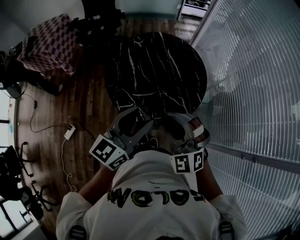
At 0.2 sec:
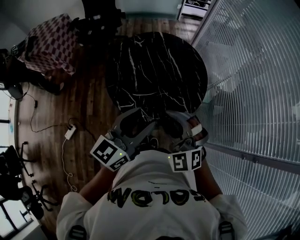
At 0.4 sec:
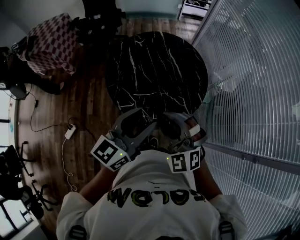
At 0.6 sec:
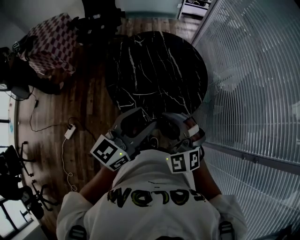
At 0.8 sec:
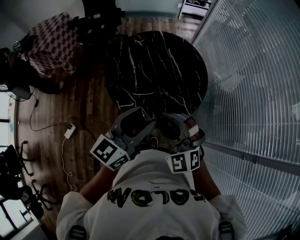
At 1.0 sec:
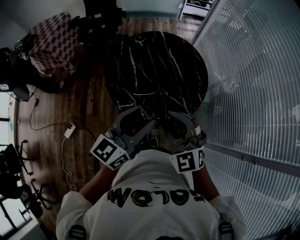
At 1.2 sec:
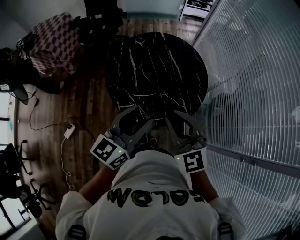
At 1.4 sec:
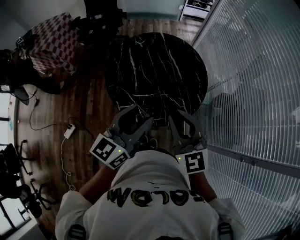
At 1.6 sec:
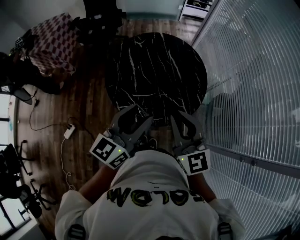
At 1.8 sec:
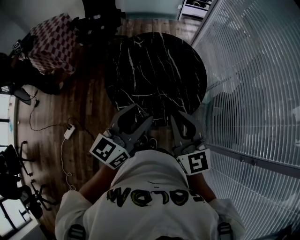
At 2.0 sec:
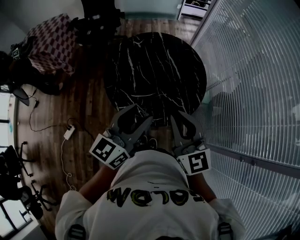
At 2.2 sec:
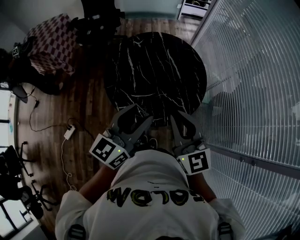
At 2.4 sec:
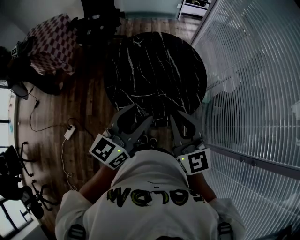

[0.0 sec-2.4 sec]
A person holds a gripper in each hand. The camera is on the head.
0.0 sec to 1.2 sec: The right gripper swivels roughly 30 degrees.
1.2 sec to 2.4 sec: The right gripper swivels about 20 degrees.

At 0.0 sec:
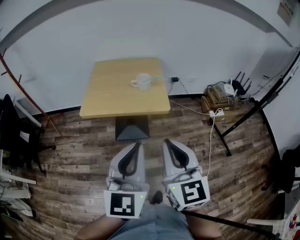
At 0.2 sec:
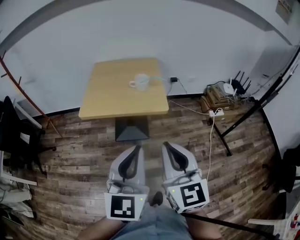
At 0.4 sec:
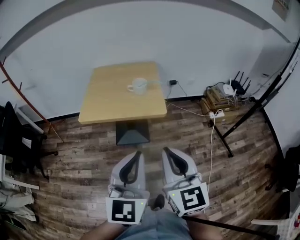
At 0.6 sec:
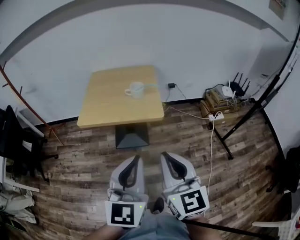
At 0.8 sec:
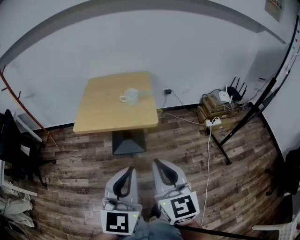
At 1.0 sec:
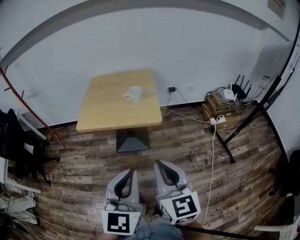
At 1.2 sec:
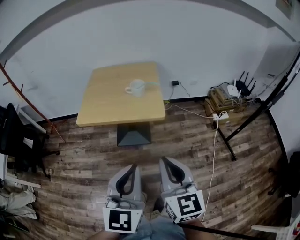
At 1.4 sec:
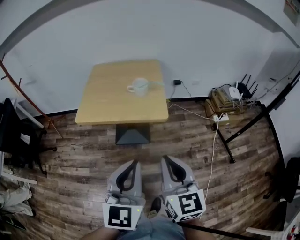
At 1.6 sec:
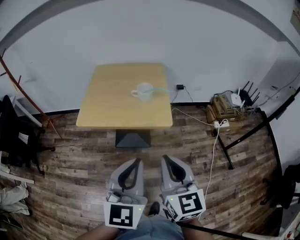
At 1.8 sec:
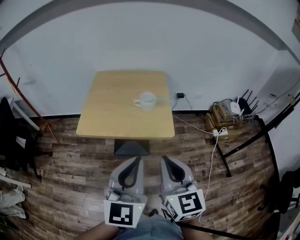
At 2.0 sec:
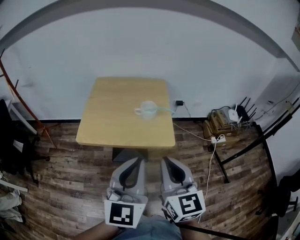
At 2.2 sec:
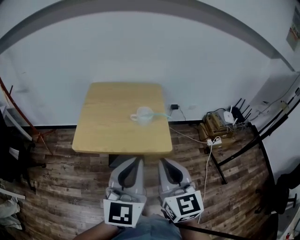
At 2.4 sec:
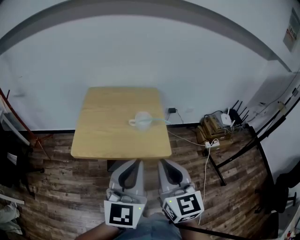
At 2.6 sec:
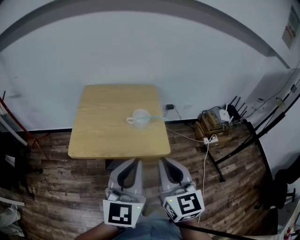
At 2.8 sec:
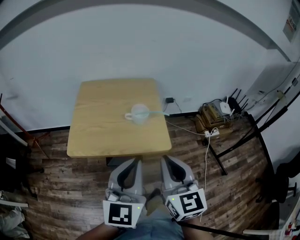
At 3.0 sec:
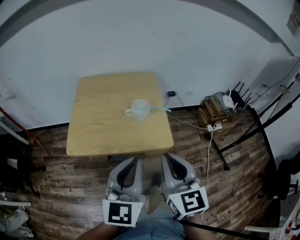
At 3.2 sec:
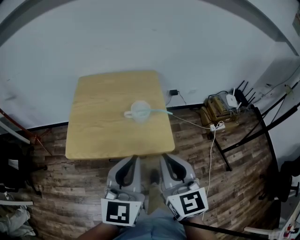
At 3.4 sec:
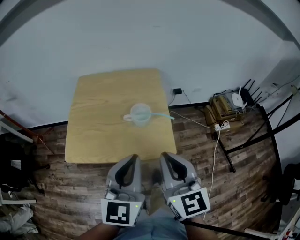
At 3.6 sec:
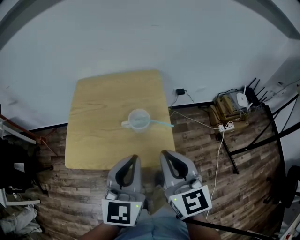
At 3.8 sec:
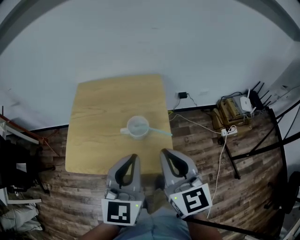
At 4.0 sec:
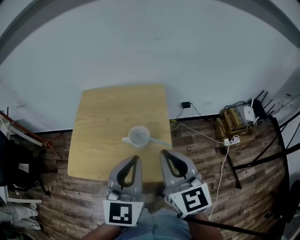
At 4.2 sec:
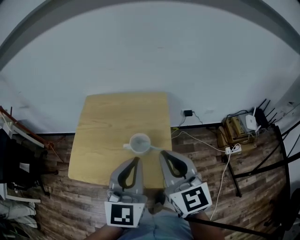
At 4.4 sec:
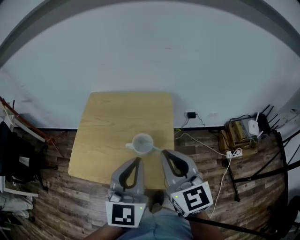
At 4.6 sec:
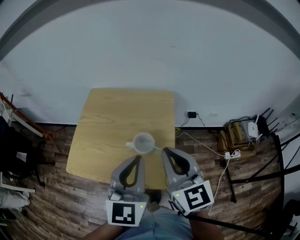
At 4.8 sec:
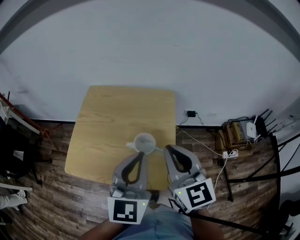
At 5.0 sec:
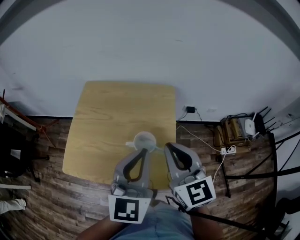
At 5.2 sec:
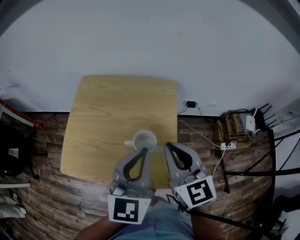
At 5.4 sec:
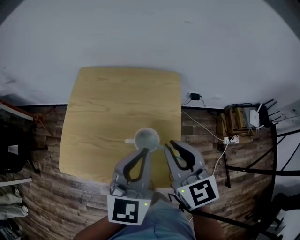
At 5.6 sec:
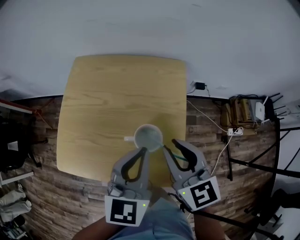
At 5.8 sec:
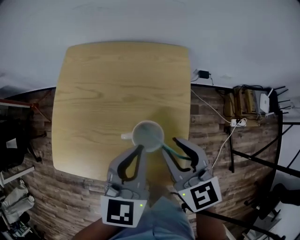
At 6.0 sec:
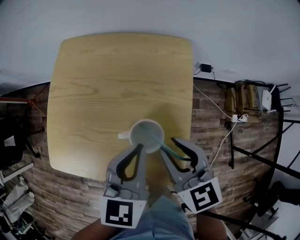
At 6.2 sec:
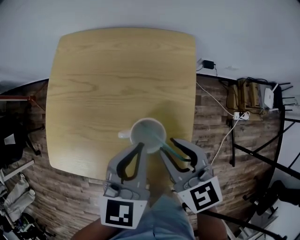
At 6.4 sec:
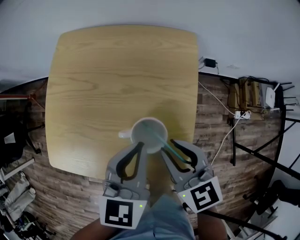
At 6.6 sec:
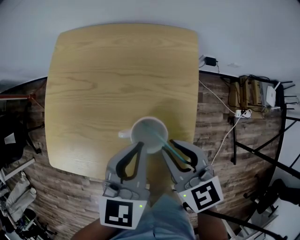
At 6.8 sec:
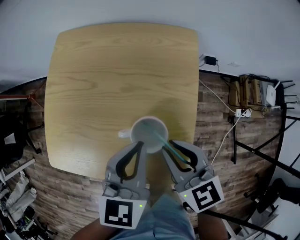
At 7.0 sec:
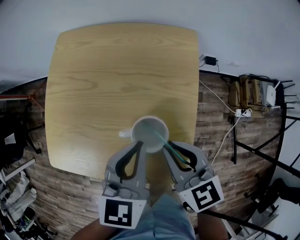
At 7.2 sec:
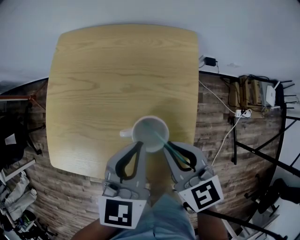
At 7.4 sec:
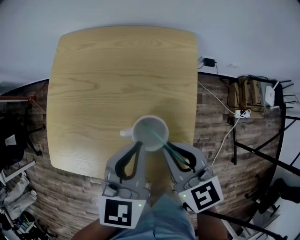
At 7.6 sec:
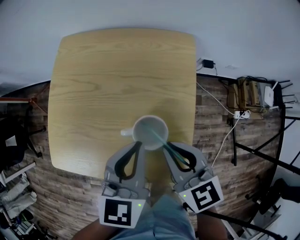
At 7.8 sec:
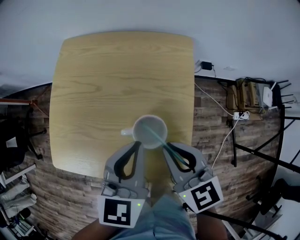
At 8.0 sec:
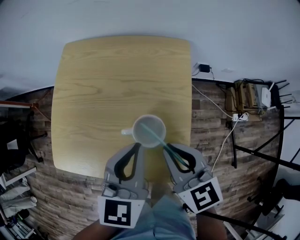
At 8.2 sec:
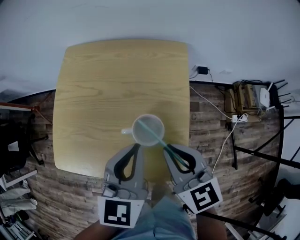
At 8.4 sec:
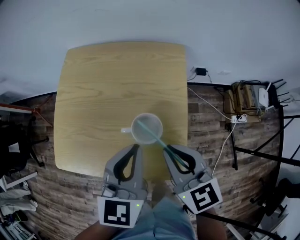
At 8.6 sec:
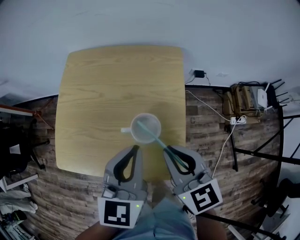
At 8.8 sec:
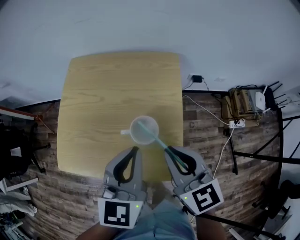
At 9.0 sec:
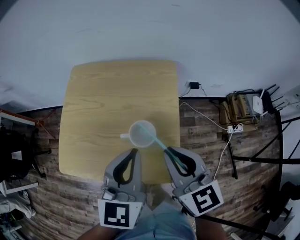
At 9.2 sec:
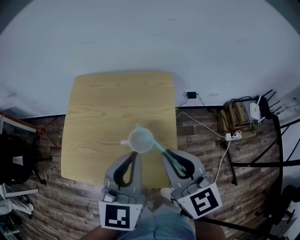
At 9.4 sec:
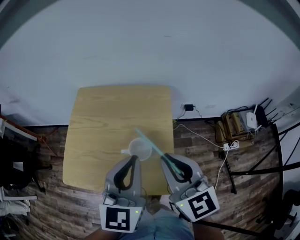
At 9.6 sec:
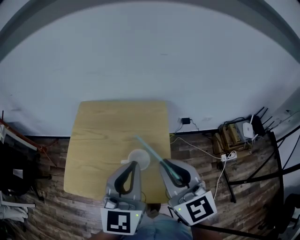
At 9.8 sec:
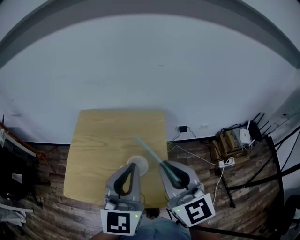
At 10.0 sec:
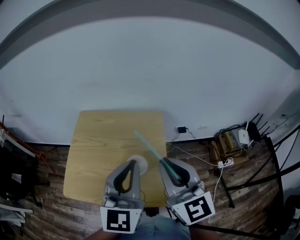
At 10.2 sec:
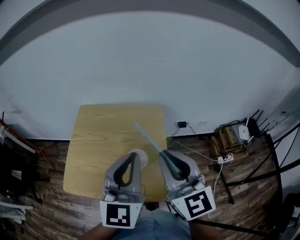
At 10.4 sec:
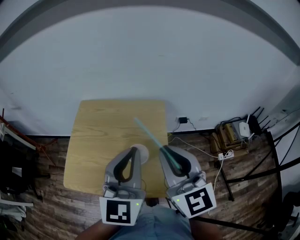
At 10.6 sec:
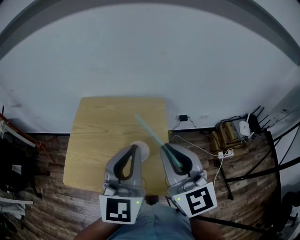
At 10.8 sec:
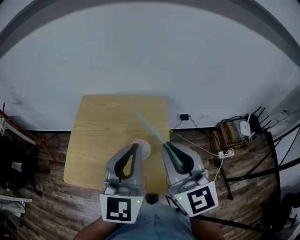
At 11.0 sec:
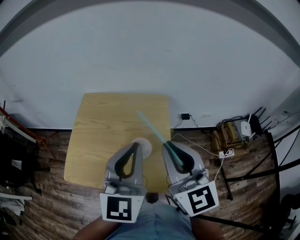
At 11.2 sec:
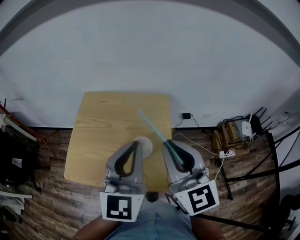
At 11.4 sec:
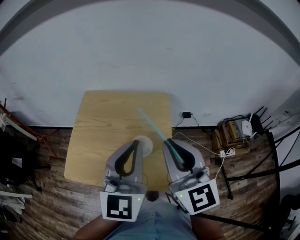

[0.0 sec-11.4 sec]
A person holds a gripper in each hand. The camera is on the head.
0.0 sec to 1.4 sec: The right gripper shifts approximately 10 cm downward and to the right; the left gripper changes place by about 5 cm.
1.4 sec to 2.8 sec: The two grippers go about 15 cm forward.
2.8 sec to 4.2 sec: The right gripper heads forward, covering about 20 cm. Meanwhile the left gripper travels forward and to the right by approximately 20 cm.
4.2 sec to 5.6 sec: The left gripper is displaced forward and downward by approximately 15 cm, while the right gripper heads downward and forward, covering about 15 cm, and opens up.
5.6 sec to 7.2 sec: Both grippers travel together downward, approximately 10 cm.
7.2 sec to 8.6 sec: Both grippers move upward, some 5 cm.
8.6 sec to 10.0 sec: Both grippers travel together upward, some 15 cm. The right gripper swivels some 30 degrees, while the left gripper changes its angle by about 20 degrees.
10.0 sec to 11.4 sec: There are only small adjustments of the grippers.

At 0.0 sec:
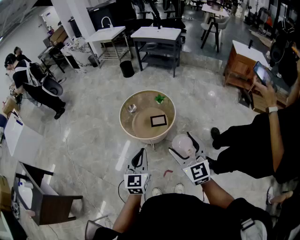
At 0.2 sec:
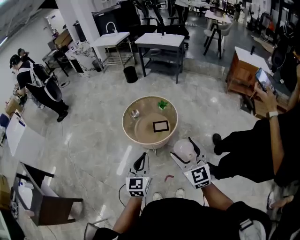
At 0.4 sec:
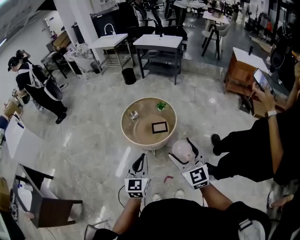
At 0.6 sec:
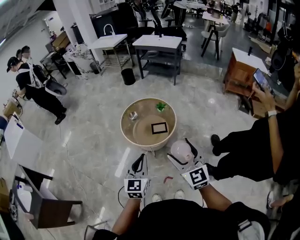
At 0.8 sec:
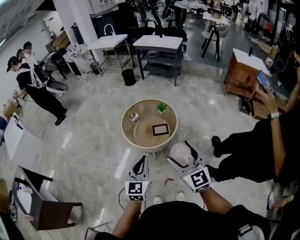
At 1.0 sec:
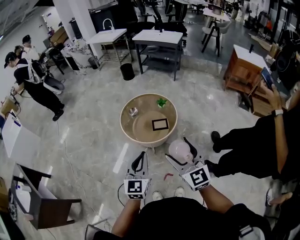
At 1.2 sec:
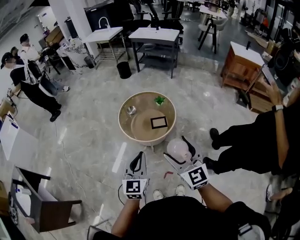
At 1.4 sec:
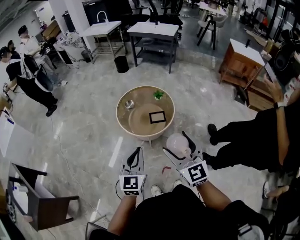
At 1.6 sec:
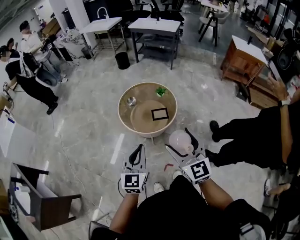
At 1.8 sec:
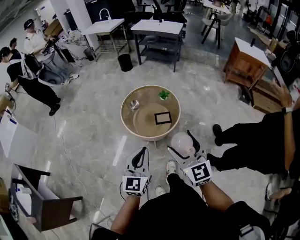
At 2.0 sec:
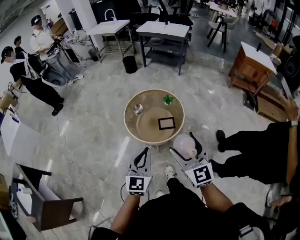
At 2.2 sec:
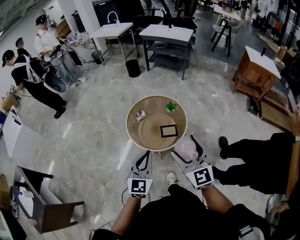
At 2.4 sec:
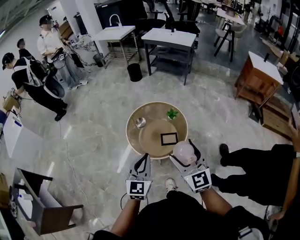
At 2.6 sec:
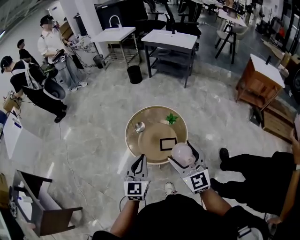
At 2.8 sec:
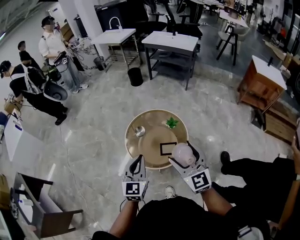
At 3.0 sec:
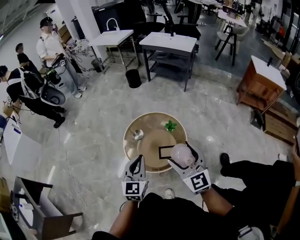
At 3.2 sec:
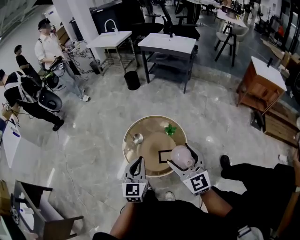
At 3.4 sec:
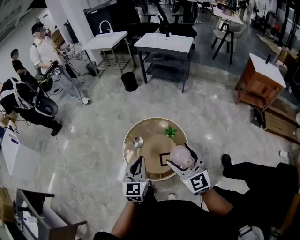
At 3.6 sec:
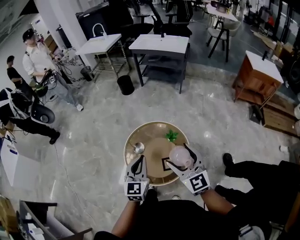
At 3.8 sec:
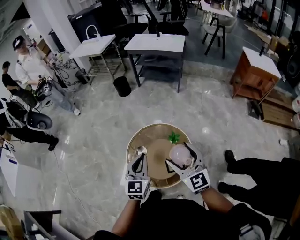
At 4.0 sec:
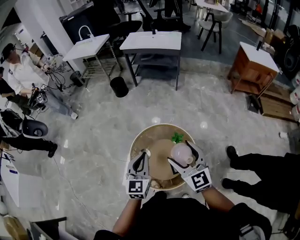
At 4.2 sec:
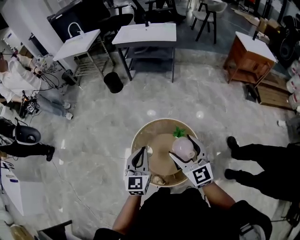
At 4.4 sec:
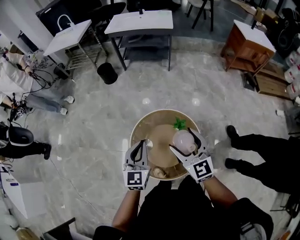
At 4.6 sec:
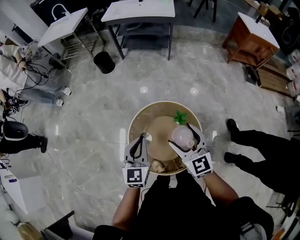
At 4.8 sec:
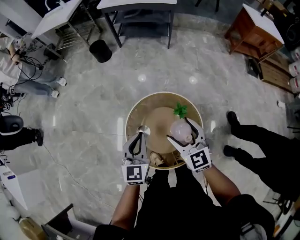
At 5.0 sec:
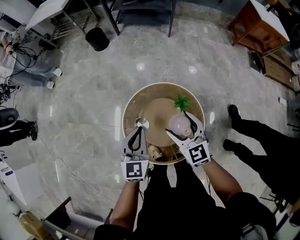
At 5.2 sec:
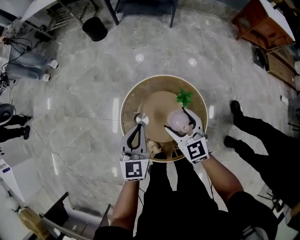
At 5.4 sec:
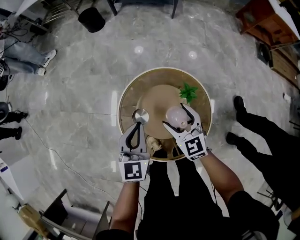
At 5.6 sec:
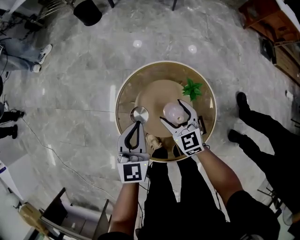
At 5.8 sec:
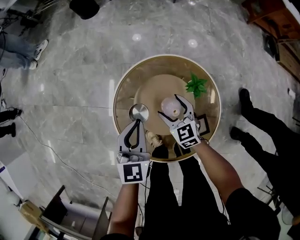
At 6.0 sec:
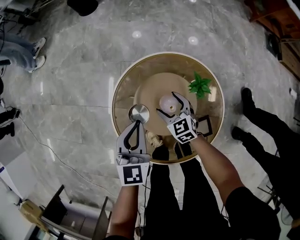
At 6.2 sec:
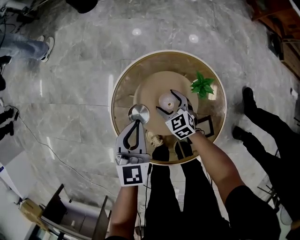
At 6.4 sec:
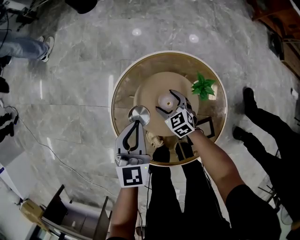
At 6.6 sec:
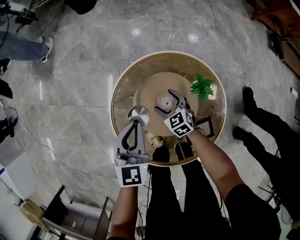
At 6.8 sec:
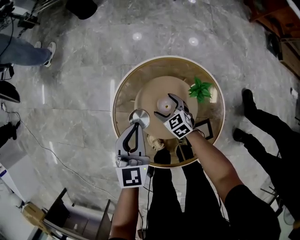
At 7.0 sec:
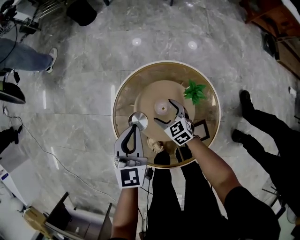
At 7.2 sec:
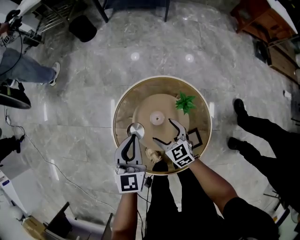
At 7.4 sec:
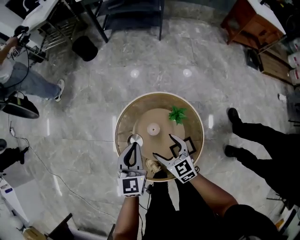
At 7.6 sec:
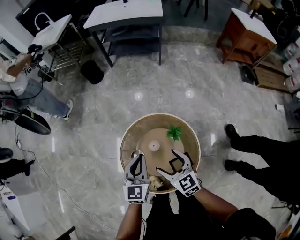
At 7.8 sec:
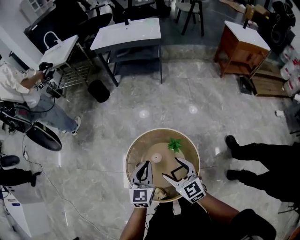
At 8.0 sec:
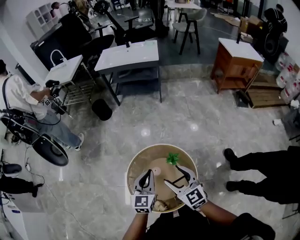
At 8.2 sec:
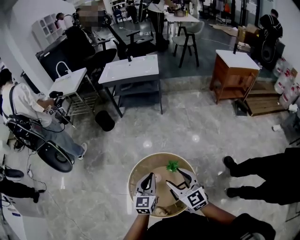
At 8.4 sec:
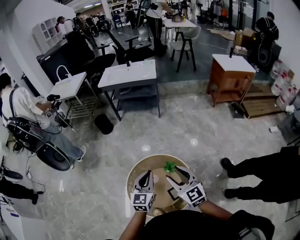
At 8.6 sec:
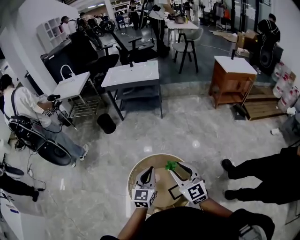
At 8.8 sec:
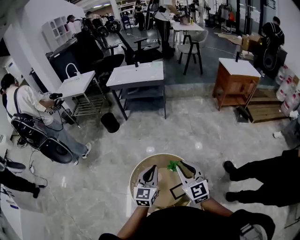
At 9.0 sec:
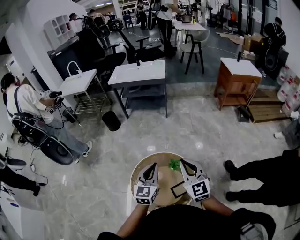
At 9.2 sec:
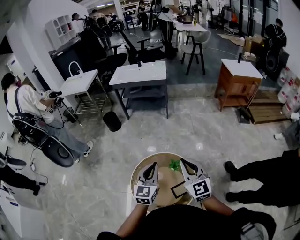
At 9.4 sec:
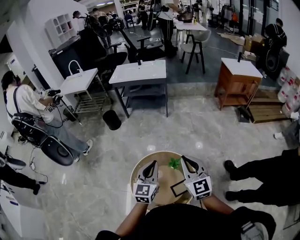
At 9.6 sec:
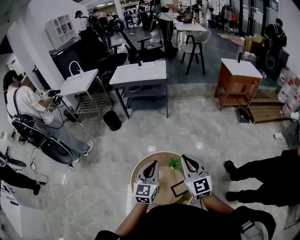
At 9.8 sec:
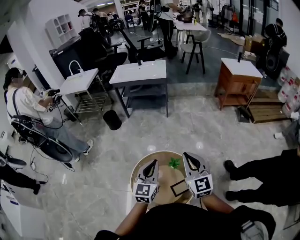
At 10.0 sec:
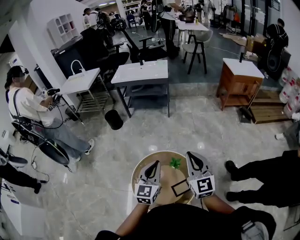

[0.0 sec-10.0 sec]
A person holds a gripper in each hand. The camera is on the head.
0.0 sec to 1.4 sec: The two grippers go some 5 cm to the left.
1.4 sec to 2.8 sec: The two grippers go roughly 25 cm forward.
2.8 sec to 4.2 sec: Both grippers travel together forward, about 30 cm.
4.2 sec to 5.8 sec: The right gripper moves downward, roughly 50 cm, and changes its angle by roughly 30 degrees. Meanwhile the left gripper is displaced downward by about 30 cm.
5.8 sec to 7.2 sec: The right gripper travels downward and back again, approximately 10 cm each way.
7.2 sec to 8.6 sec: The right gripper is displaced upward by about 50 cm, tilts its fingers some 30 degrees upward, and closes up; the left gripper travels upward and to the right by roughly 30 cm.
8.6 sec to 10.0 sec: The right gripper shifts about 5 cm upward, and closes. The left gripper changes place by about 5 cm.
